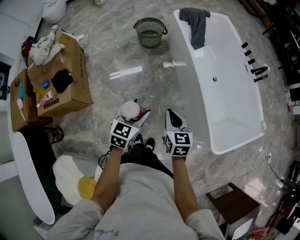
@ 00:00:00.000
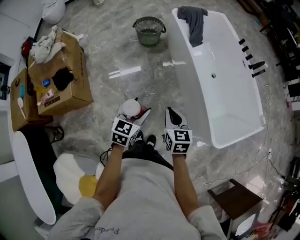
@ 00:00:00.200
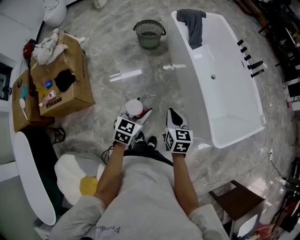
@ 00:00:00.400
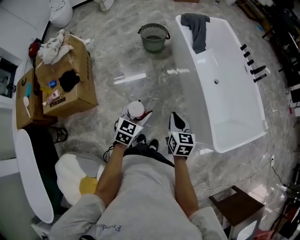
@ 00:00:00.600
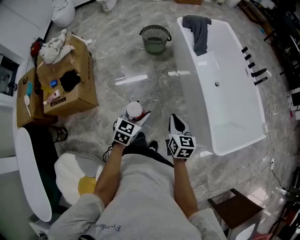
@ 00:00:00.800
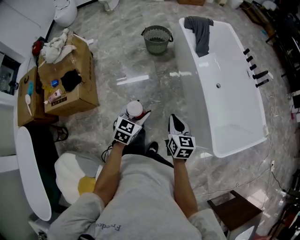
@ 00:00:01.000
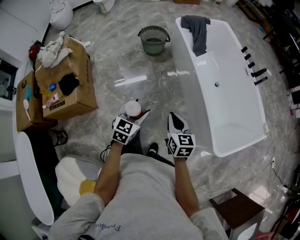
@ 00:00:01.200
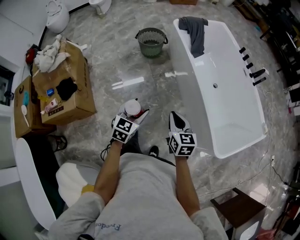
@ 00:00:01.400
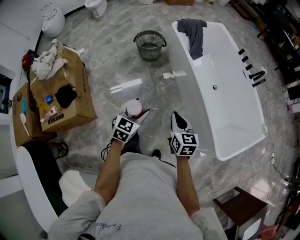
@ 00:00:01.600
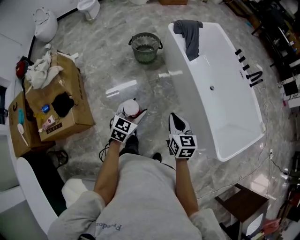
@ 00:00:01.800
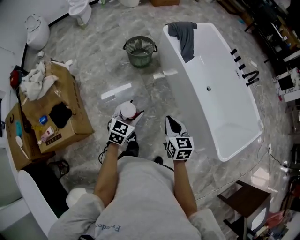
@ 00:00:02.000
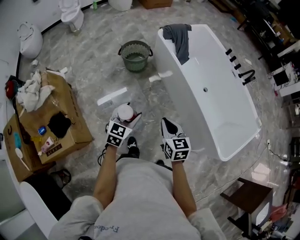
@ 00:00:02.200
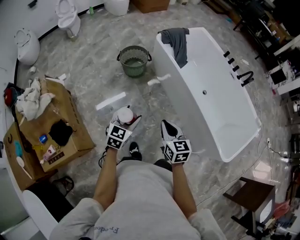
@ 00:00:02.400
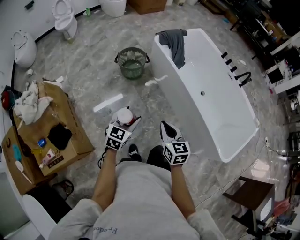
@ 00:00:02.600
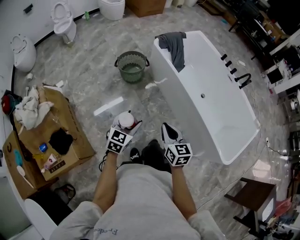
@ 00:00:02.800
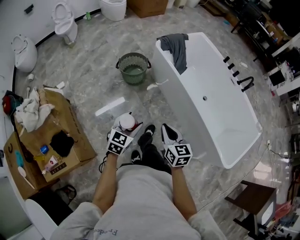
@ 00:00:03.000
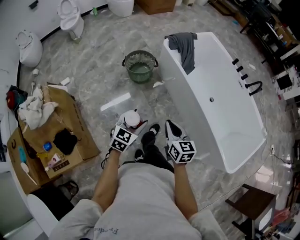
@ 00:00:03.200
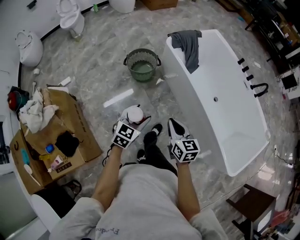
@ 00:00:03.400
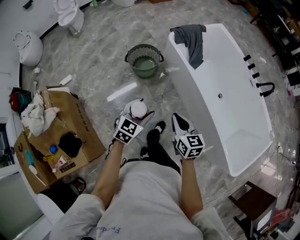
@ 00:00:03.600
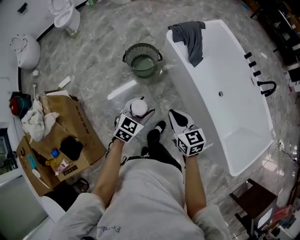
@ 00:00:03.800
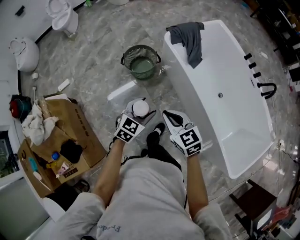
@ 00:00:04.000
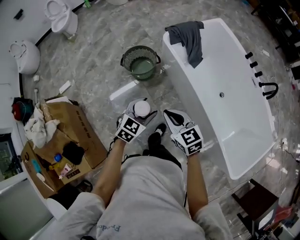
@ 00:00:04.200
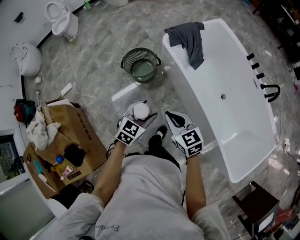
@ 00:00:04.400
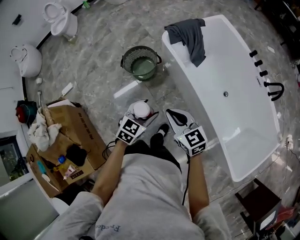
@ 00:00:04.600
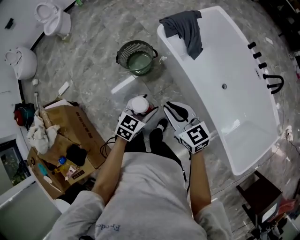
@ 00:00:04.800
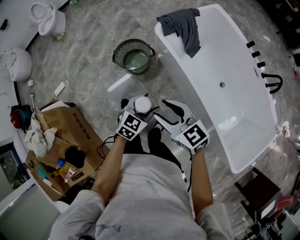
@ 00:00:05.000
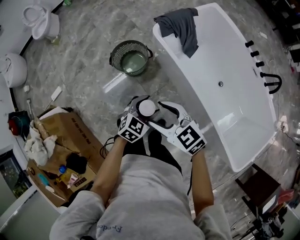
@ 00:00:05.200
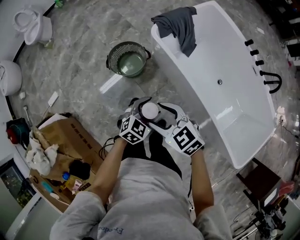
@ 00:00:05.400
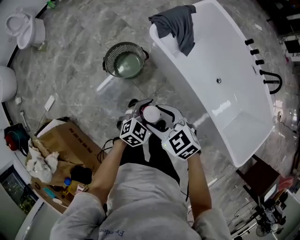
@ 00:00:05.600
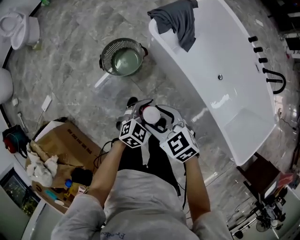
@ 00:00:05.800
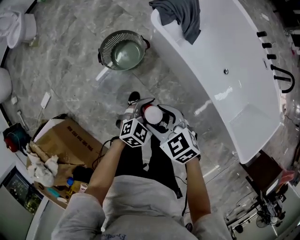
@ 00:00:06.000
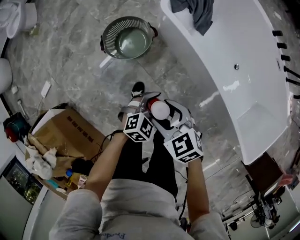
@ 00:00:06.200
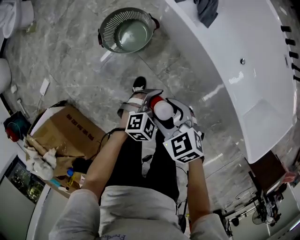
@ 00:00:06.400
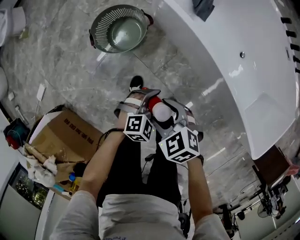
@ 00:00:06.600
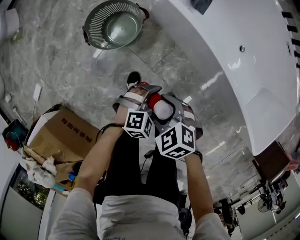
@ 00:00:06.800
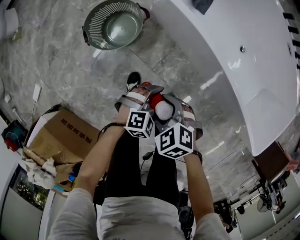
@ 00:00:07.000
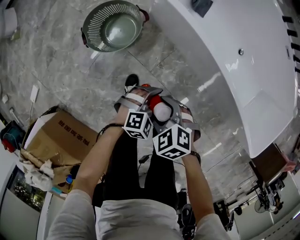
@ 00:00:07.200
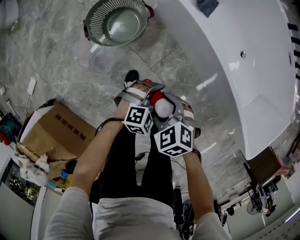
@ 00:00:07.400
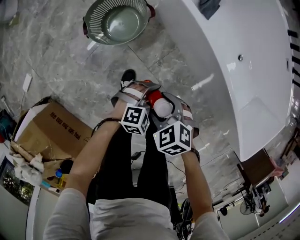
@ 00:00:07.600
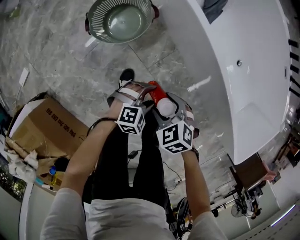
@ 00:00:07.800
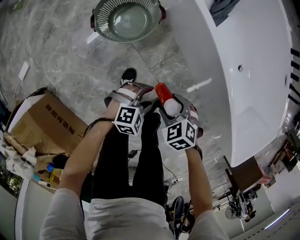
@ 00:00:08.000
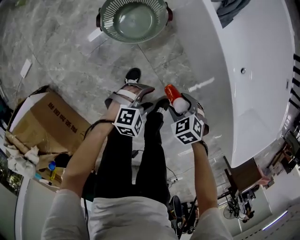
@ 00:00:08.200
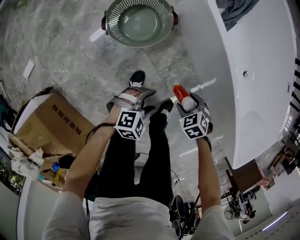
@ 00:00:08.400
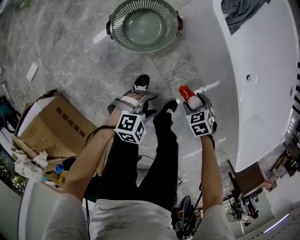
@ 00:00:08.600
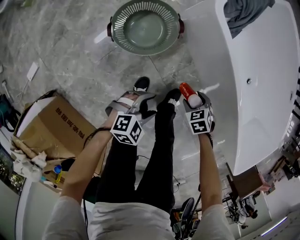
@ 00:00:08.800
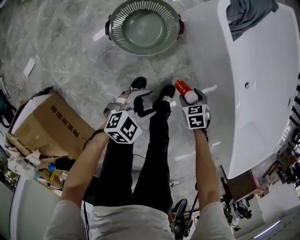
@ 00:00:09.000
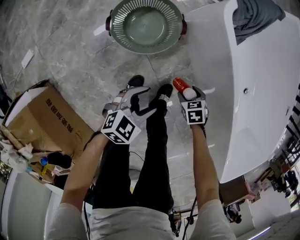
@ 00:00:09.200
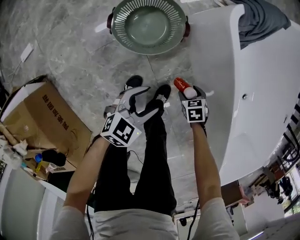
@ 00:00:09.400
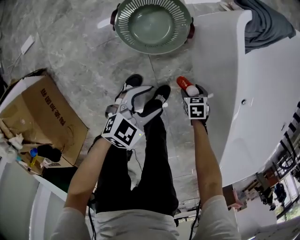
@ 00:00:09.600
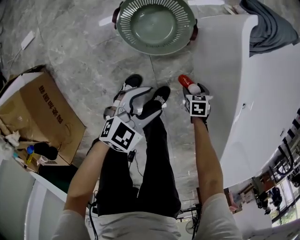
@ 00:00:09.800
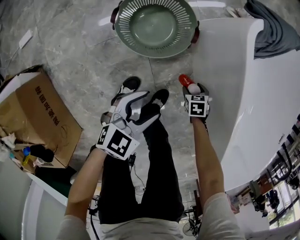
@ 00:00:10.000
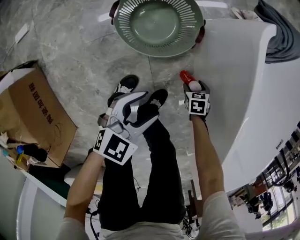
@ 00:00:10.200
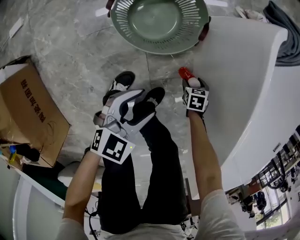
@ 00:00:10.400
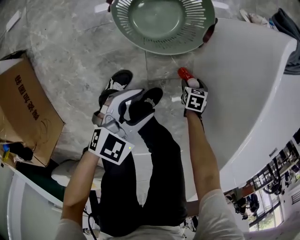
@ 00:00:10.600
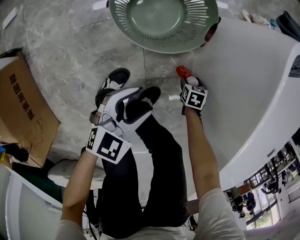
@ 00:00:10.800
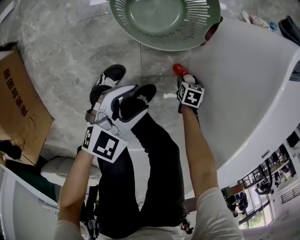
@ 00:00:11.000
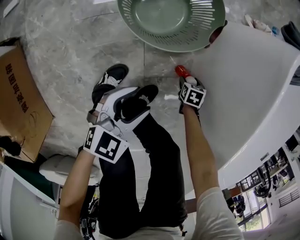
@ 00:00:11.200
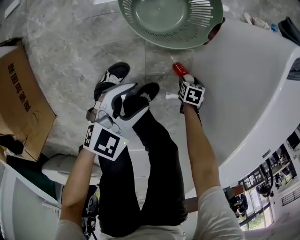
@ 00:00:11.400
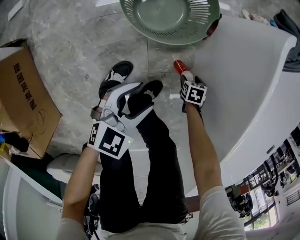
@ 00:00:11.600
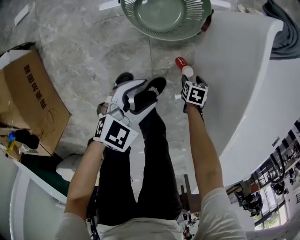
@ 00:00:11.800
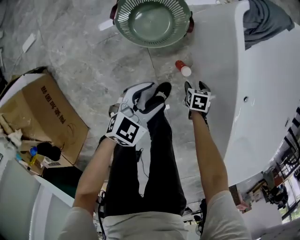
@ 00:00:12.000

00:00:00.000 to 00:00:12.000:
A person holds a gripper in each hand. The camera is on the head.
00:00:00.000 to 00:00:01.600: The left gripper moves forward, some 5 cm.
00:00:01.600 to 00:00:03.000: The right gripper goes roughly 20 cm to the left and forward; the left gripper is displaced forward and to the left by approximately 20 cm.
00:00:03.000 to 00:00:04.400: The grippers both shift forward by roughly 25 cm. The right gripper turns by about 20 degrees.
00:00:04.400 to 00:00:06.000: The left gripper moves downward and forward, roughly 20 cm, and changes its angle by approximately 30 degrees. The right gripper is displaced forward, downward and to the left by approximately 20 cm, turns by approximately 20 degrees, and opens up.
00:00:06.000 to 00:00:07.600: Both grippers move downward, approximately 20 cm. The right gripper turns by about 20 degrees. The left gripper swivels roughly 30 degrees.
00:00:07.600 to 00:00:09.000: The right gripper is displaced downward by approximately 15 cm, and turns by some 20 degrees, while the left gripper shifts by approximately 15 cm, and rotates some 40 degrees.
00:00:09.000 to 00:00:10.400: The left gripper moves downward, about 5 cm, and rotates approximately 30 degrees; the right gripper is displaced downward by approximately 20 cm.
00:00:10.400 to 00:00:12.000: The right gripper goes approximately 10 cm upward; the left gripper travels upward by about 5 cm.

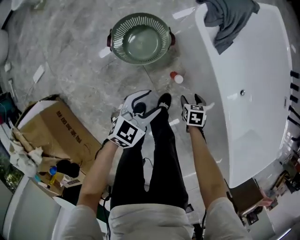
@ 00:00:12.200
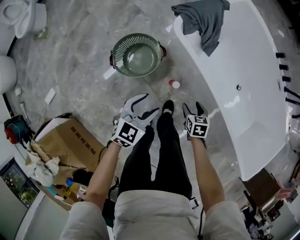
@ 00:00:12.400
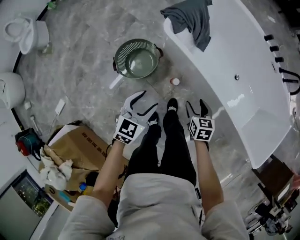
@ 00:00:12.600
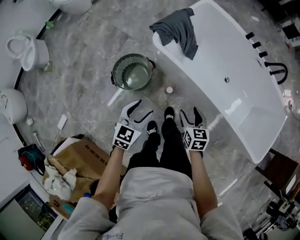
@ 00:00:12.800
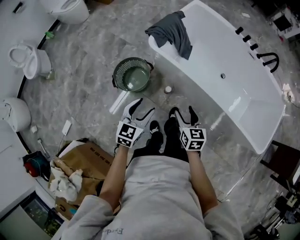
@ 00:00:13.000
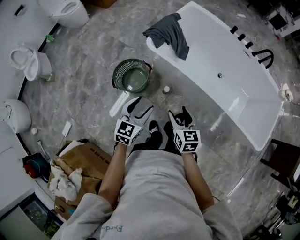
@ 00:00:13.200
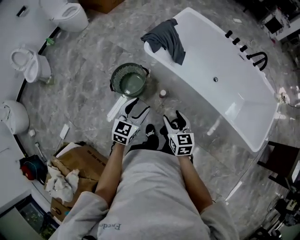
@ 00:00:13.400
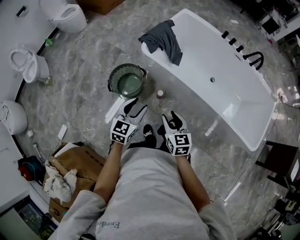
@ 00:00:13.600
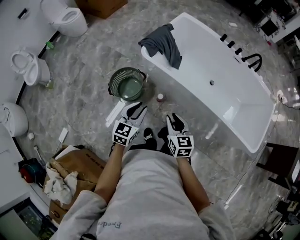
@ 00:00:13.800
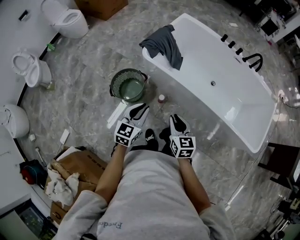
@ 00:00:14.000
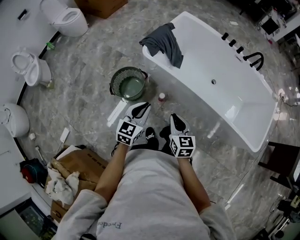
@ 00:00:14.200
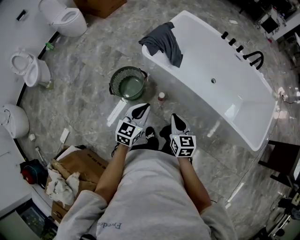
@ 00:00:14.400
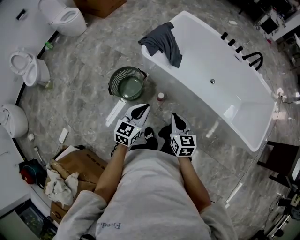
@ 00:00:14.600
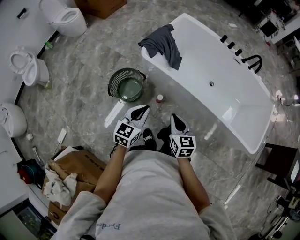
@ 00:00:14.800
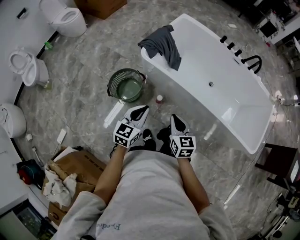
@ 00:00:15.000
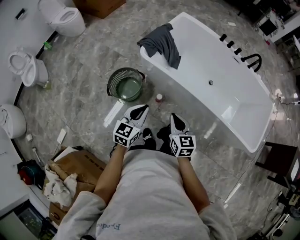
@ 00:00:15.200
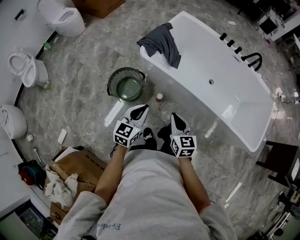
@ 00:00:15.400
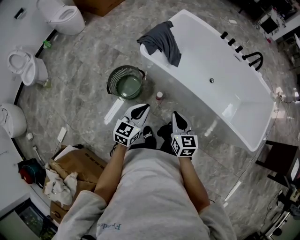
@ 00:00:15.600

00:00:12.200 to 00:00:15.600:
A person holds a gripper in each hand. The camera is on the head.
00:00:12.200 to 00:00:13.800: The right gripper shifts roughly 50 cm upward and backward, tilts its fingers approximately 50 degrees upward, and closes; the left gripper is displaced upward by some 30 cm, and closes up.
00:00:13.800 to 00:00:15.600: The right gripper closes up.

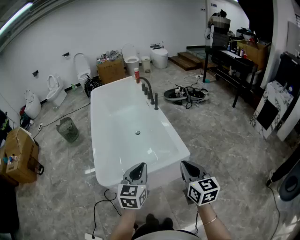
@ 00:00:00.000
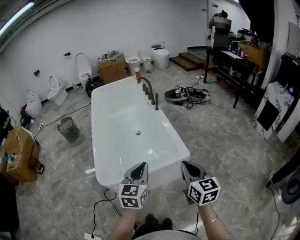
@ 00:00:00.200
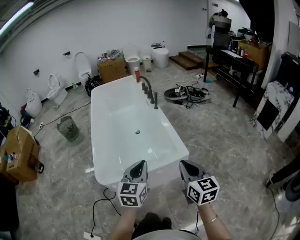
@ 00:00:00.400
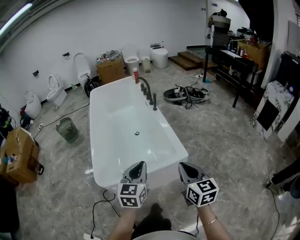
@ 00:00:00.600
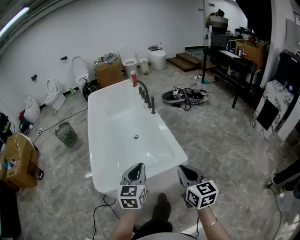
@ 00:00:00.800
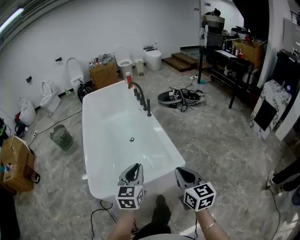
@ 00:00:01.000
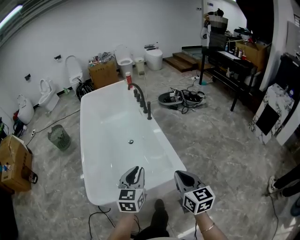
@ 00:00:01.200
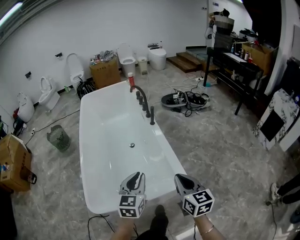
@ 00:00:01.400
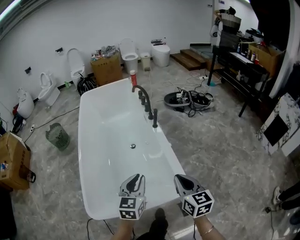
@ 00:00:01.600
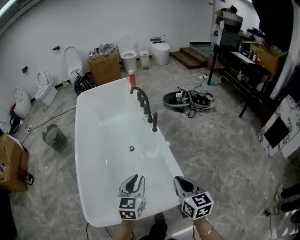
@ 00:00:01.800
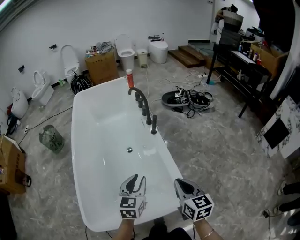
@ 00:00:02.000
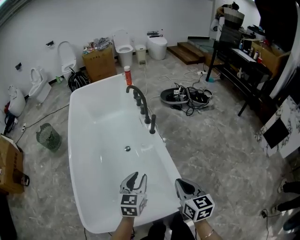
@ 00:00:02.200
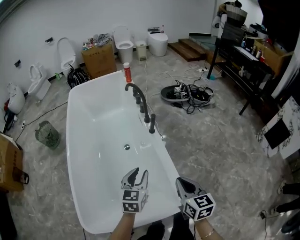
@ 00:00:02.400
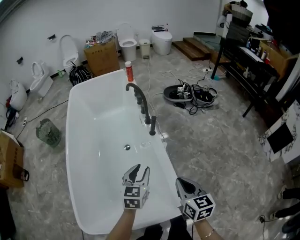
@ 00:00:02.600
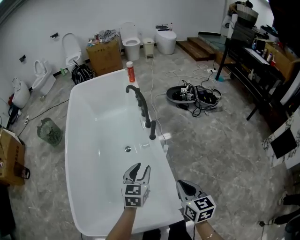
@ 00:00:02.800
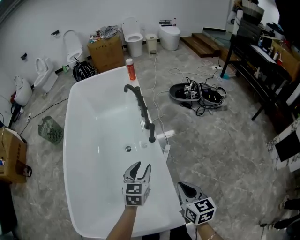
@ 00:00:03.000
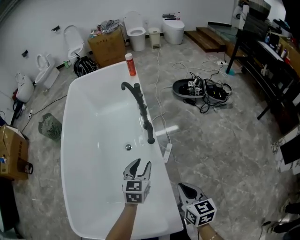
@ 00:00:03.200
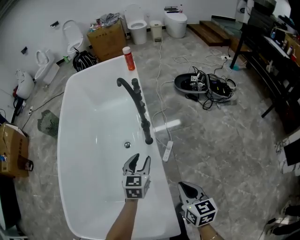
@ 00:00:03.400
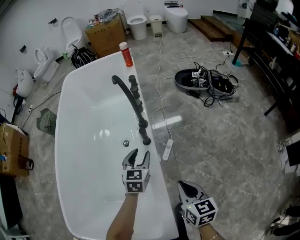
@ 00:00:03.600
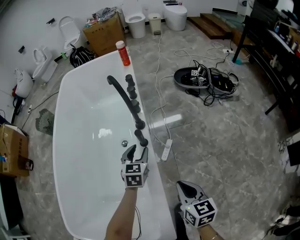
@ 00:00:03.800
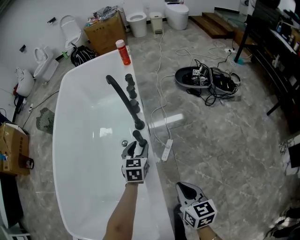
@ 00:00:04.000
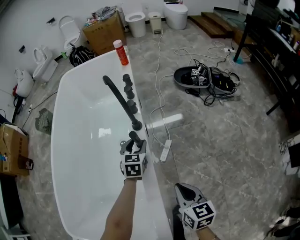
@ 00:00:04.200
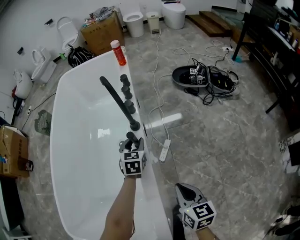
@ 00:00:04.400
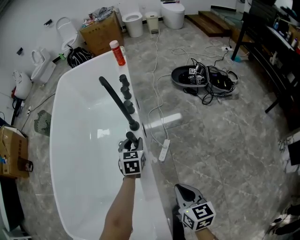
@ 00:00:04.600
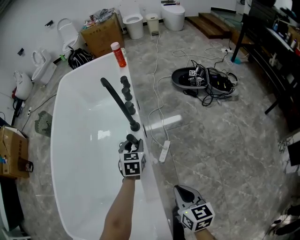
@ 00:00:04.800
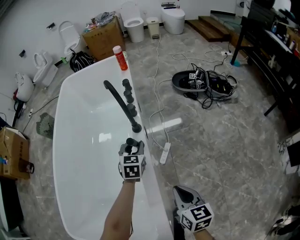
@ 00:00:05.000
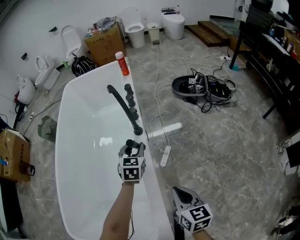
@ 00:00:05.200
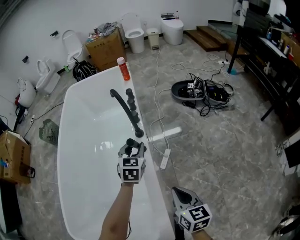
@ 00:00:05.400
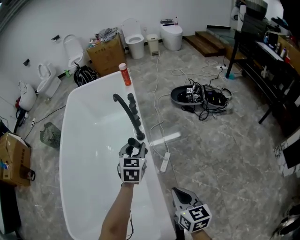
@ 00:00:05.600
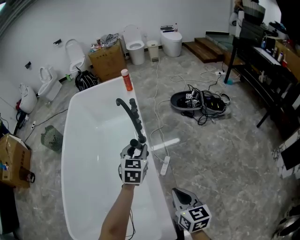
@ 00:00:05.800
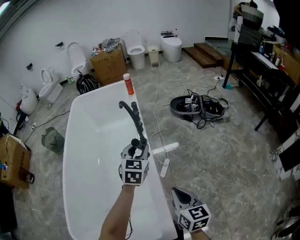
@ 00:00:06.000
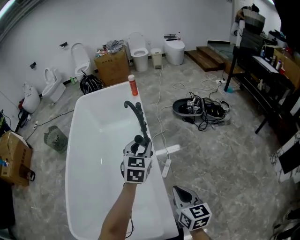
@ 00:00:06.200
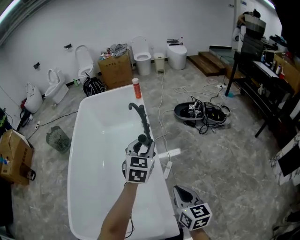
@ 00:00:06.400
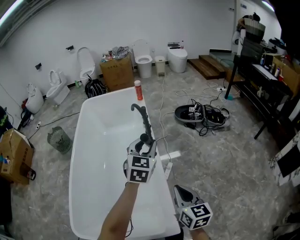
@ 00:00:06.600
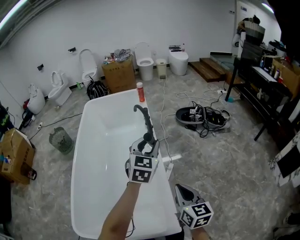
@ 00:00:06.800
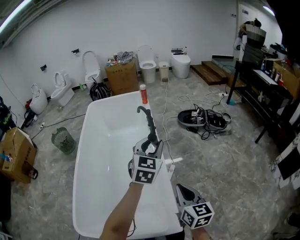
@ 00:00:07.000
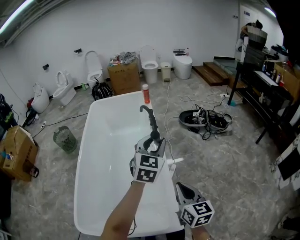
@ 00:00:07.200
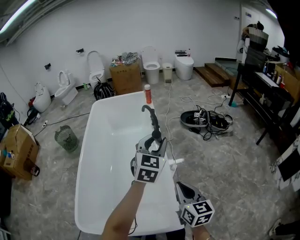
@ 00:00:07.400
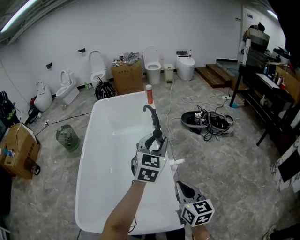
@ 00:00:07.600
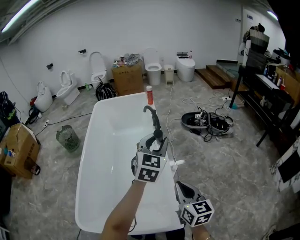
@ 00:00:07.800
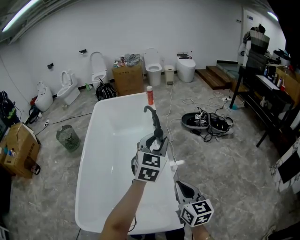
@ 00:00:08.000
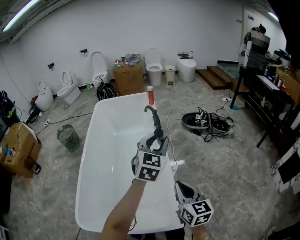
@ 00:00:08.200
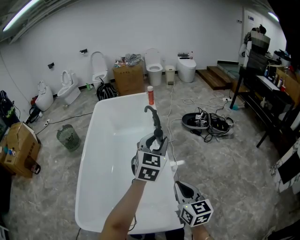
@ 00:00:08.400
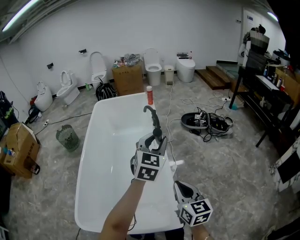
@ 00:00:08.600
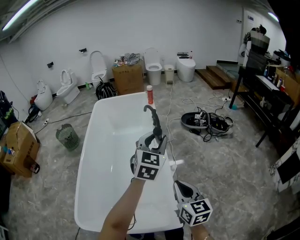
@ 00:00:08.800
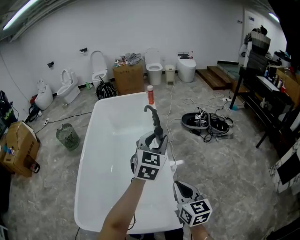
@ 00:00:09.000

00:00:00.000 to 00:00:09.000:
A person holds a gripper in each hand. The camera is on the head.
00:00:00.000 to 00:00:01.600: The pair of grippers is taken forward, roughly 40 cm.
00:00:01.600 to 00:00:03.000: The two grippers travel together, forward, about 50 cm. The left gripper opens.
00:00:03.000 to 00:00:04.400: The grippers both shift forward, downward and to the right by roughly 35 cm.
00:00:04.400 to 00:00:06.000: The left gripper travels upward and backward by about 35 cm. Meanwhile the right gripper heads upward, backward and to the left, covering approximately 25 cm.
00:00:06.000 to 00:00:07.600: The right gripper is displaced backward, upward and to the left by approximately 25 cm. Meanwhile the left gripper shifts roughly 30 cm backward and upward.
00:00:07.600 to 00:00:09.000: There are only small adjustments of the grippers.
